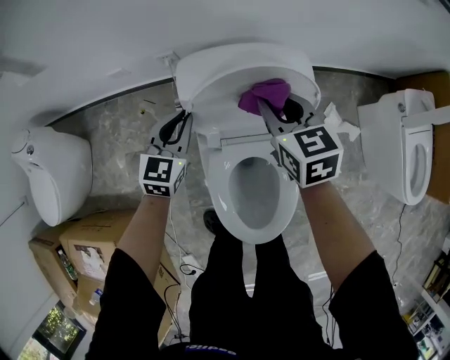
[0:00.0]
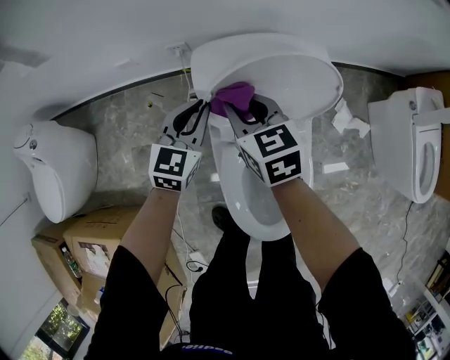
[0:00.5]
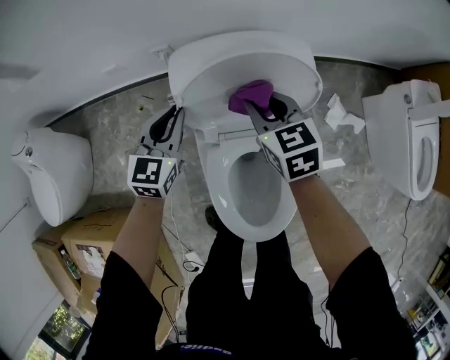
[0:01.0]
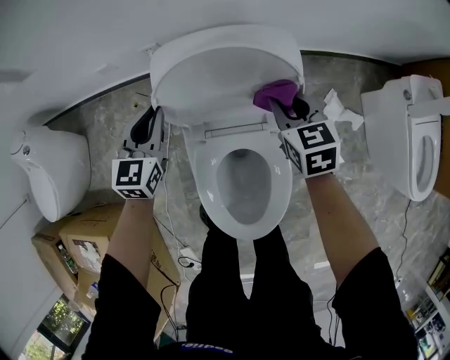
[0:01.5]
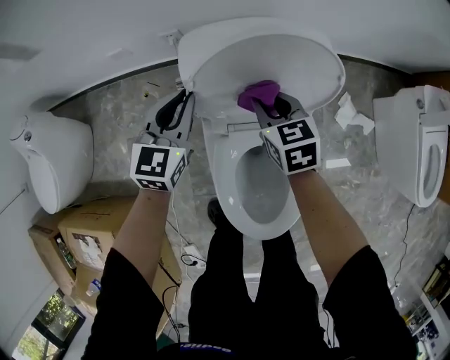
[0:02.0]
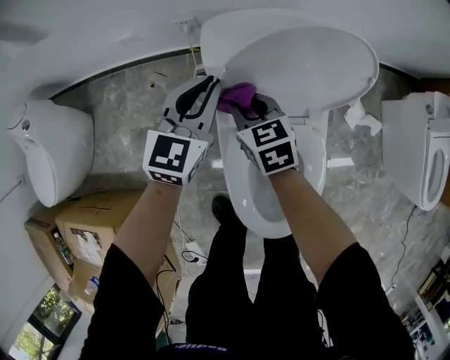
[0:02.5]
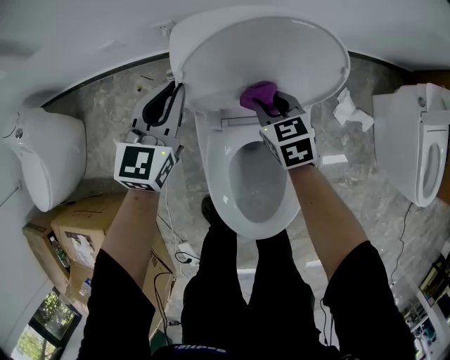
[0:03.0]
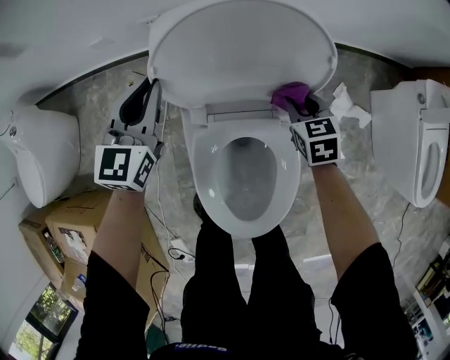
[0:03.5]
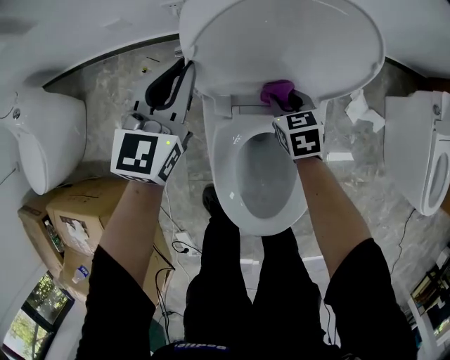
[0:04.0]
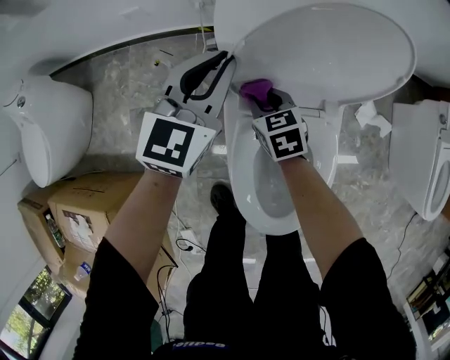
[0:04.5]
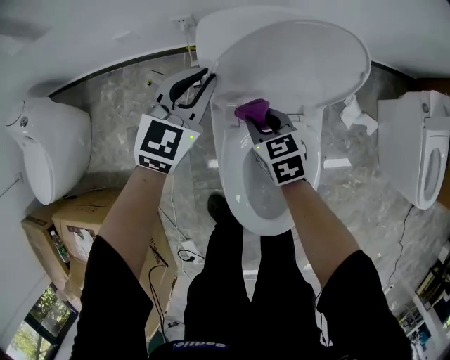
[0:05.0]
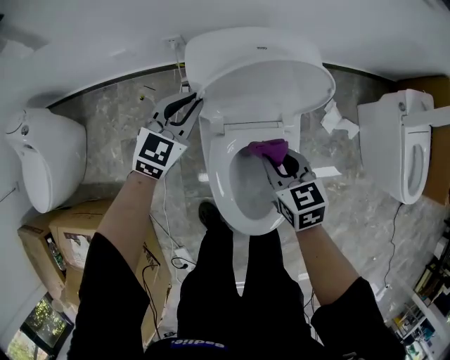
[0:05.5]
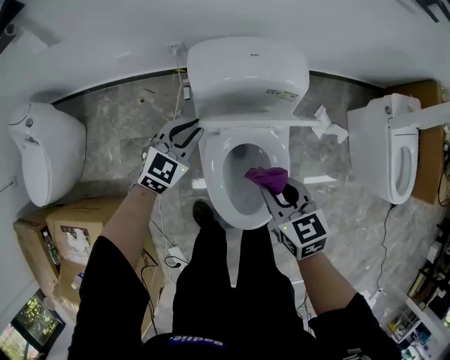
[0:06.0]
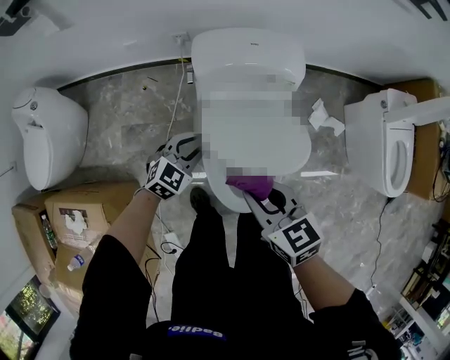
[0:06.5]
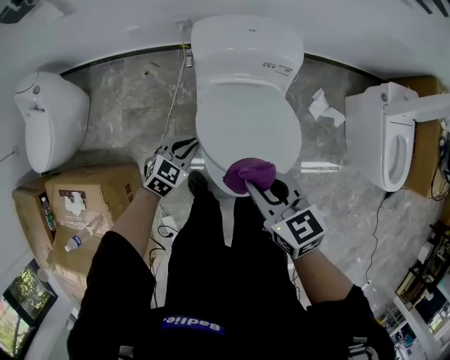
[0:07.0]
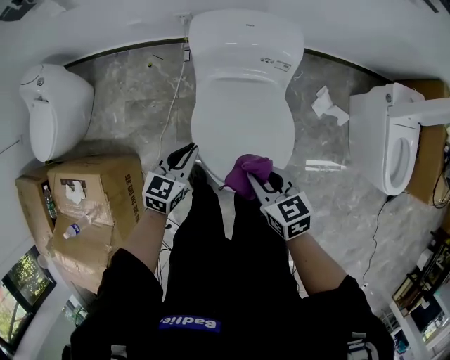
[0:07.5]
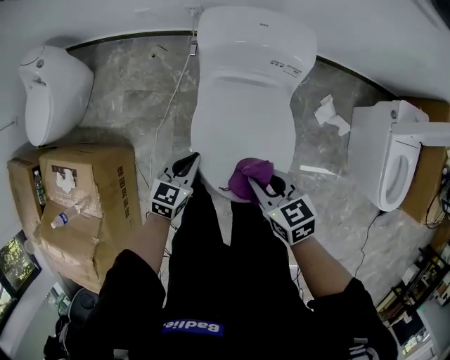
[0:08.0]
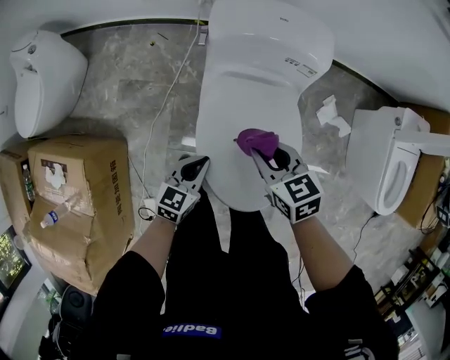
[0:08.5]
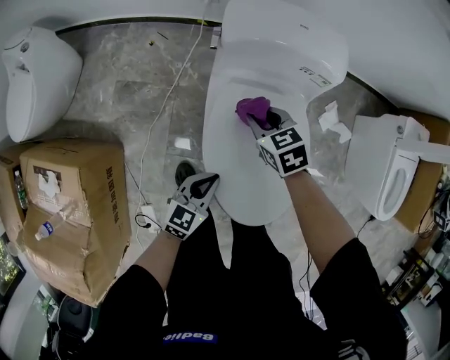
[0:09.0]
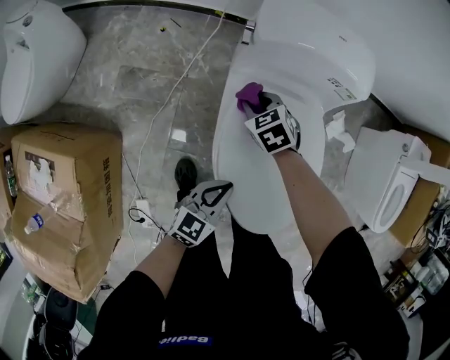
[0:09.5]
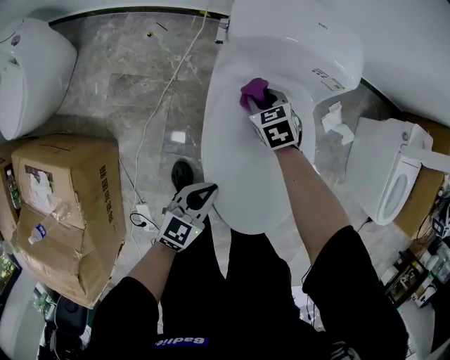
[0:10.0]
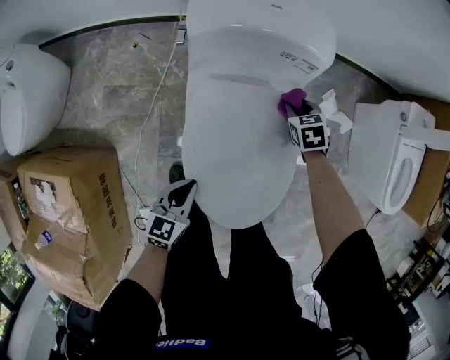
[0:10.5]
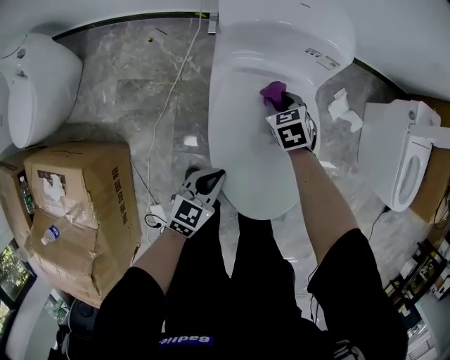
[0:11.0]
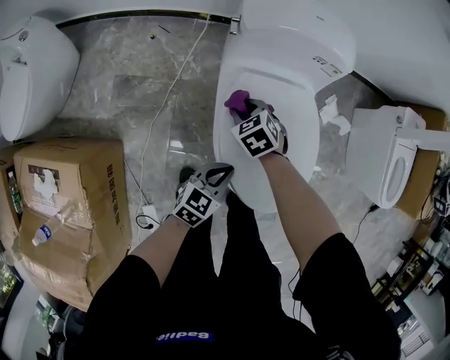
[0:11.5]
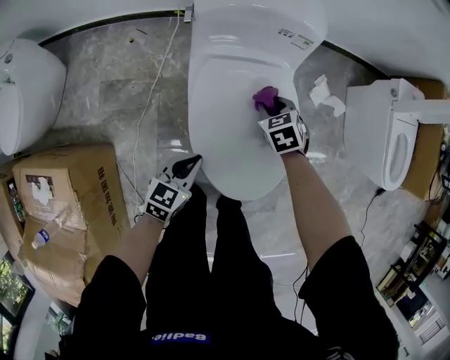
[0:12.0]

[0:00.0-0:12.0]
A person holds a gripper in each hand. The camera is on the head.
0:00.0 to 0:02.0: The right gripper goes left and right, roughly 20 cm each way, reversing 2 times.
0:02.0 to 0:04.0: The right gripper goes left and right, about 25 cm each way, reversing 2 times.
0:04.0 to 0:06.0: The right gripper shifts roughly 30 cm upward and backward. Meanwhile the left gripper moves backward, roughly 10 cm, and rotates approximately 30 degrees.
0:06.0 to 0:08.0: The right gripper shifts approximately 10 cm backward; the left gripper goes approximately 20 cm backward, and changes its angle by about 30 degrees.
0:08.0 to 0:10.0: The left gripper is displaced downward and backward by about 10 cm. Meanwhile the right gripper goes some 30 cm downward and forward, and turns by approximately 30 degrees.
0:10.0 to 0:12.0: The right gripper moves left and right over approximately 25 cm, changing direction 2 times.

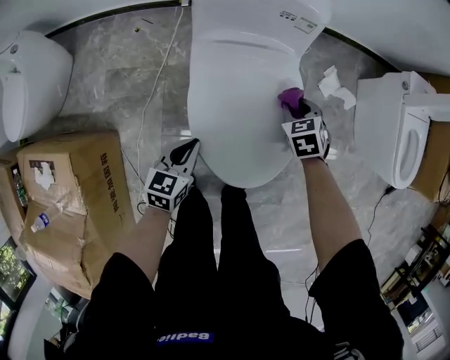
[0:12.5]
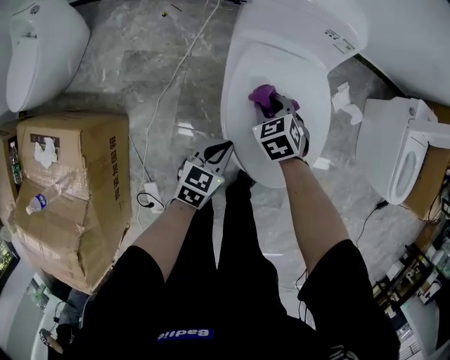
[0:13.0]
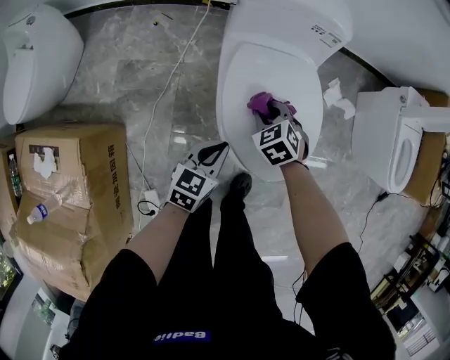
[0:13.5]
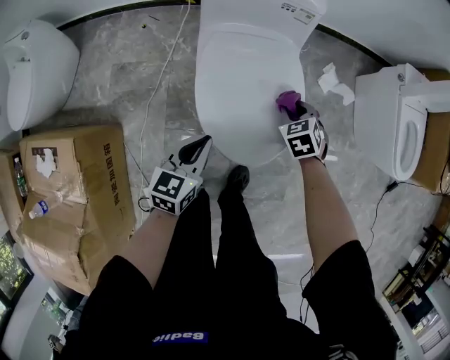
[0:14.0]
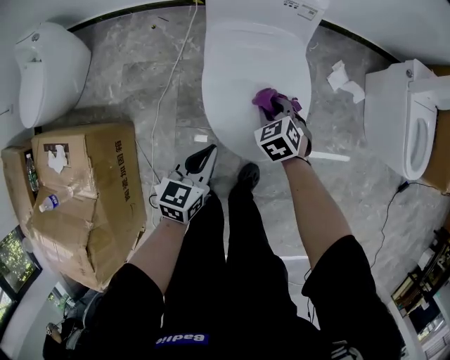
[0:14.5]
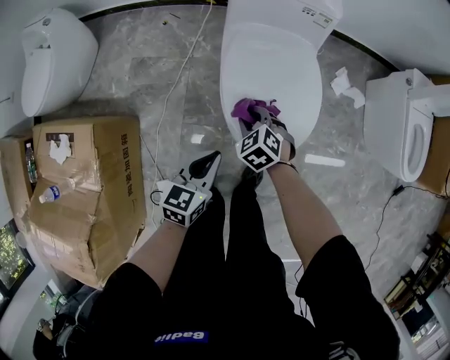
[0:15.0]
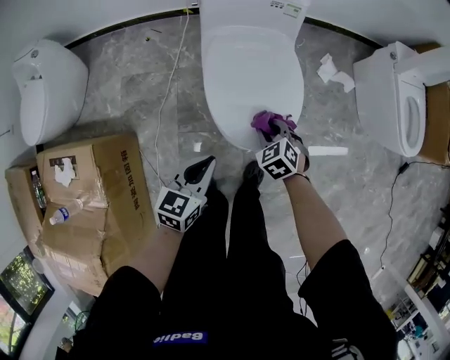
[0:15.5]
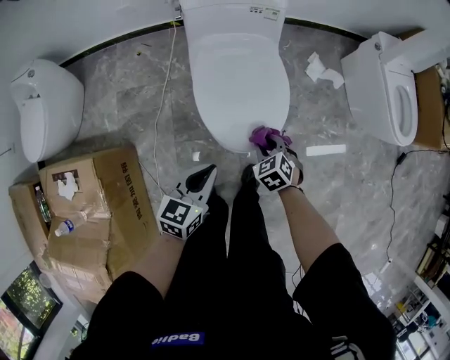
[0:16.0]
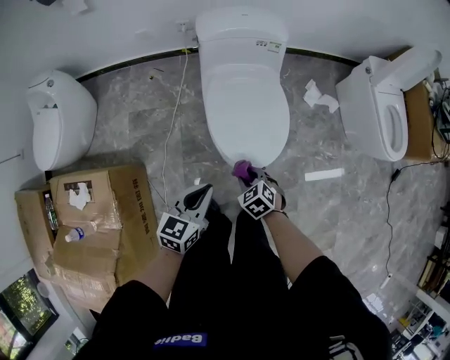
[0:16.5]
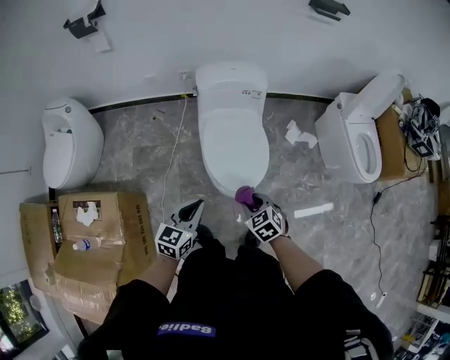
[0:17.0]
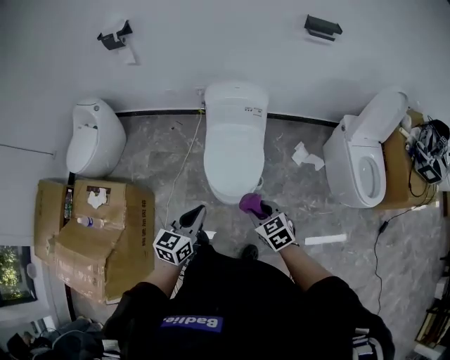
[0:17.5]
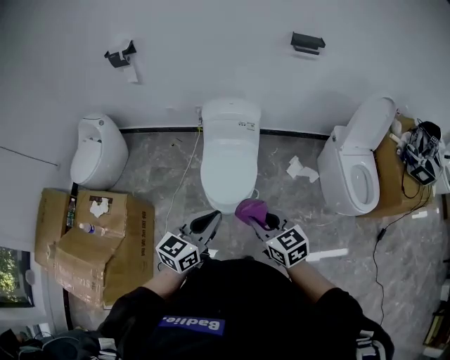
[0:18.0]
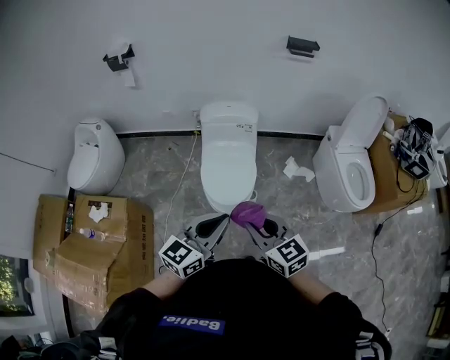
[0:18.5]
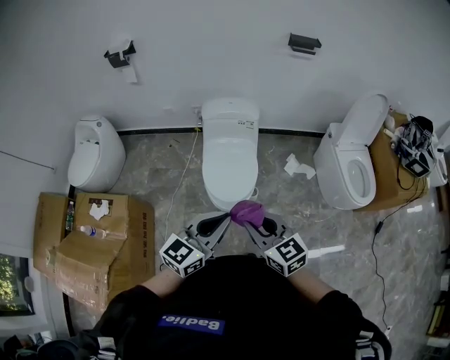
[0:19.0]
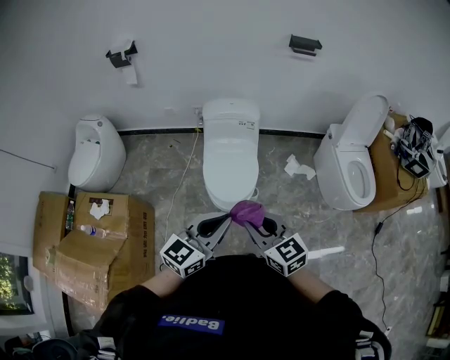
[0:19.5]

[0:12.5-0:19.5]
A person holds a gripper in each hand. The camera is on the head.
0:12.5 to 0:14.5: The left gripper moves backward and upward, roughly 10 cm. Meanwhile the right gripper goes left and right, roughly 20 cm each way, reversing 2 times.
0:14.5 to 0:16.0: The left gripper moves backward and upward, some 10 cm; the right gripper travels backward by about 15 cm, and goes to the left and returns, about 10 cm each way.
0:16.0 to 0:17.5: Both grippers move upward, roughly 25 cm. The right gripper swivels approximately 20 degrees.
0:17.5 to 0:19.5: The right gripper travels upward and backward by roughly 20 cm, and rotates about 30 degrees. Meanwhile the left gripper is displaced upward, backward and to the right by approximately 20 cm, and swivels some 20 degrees.

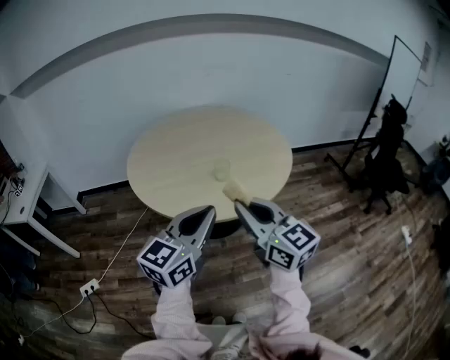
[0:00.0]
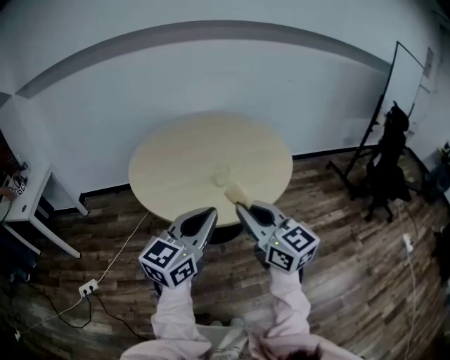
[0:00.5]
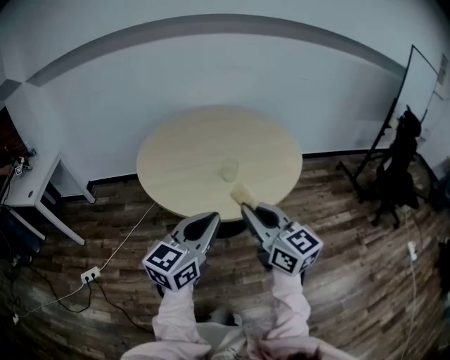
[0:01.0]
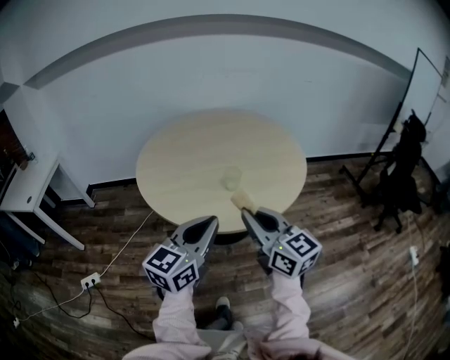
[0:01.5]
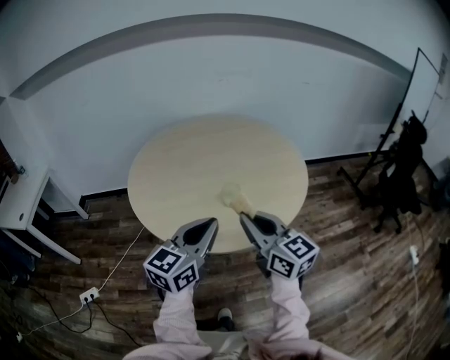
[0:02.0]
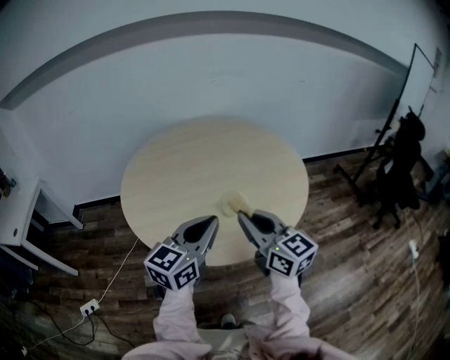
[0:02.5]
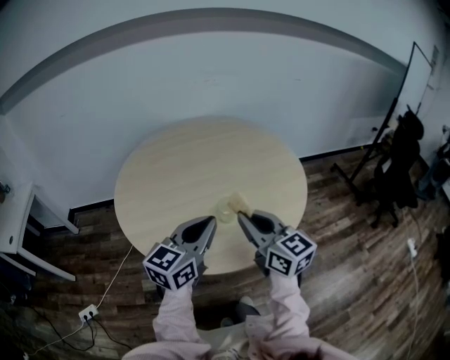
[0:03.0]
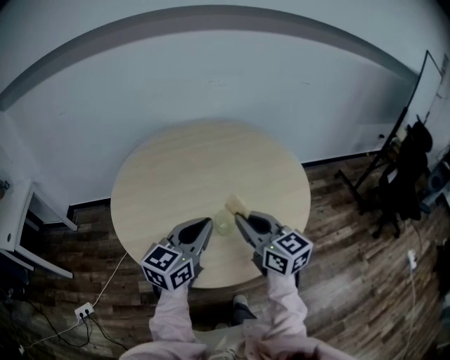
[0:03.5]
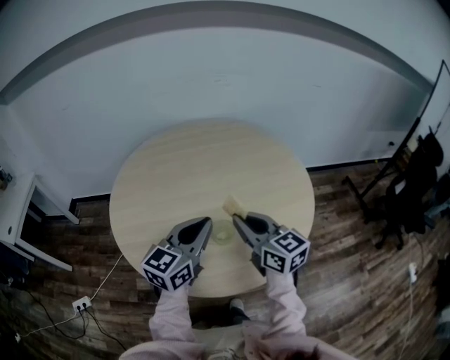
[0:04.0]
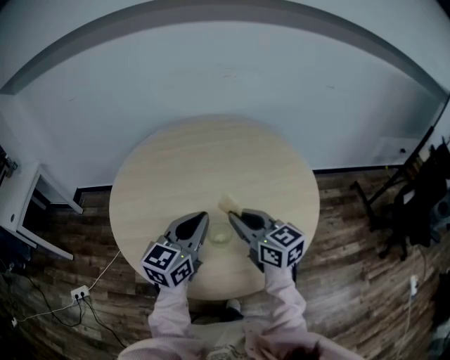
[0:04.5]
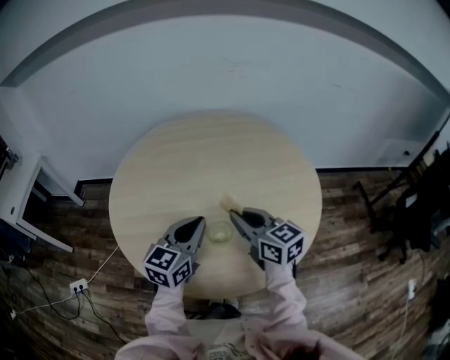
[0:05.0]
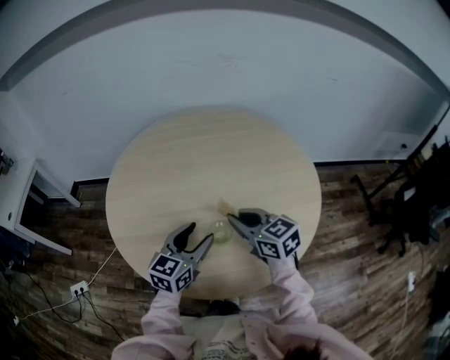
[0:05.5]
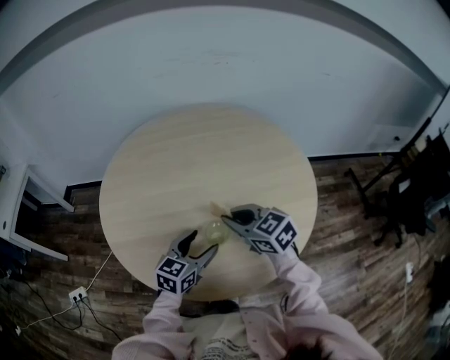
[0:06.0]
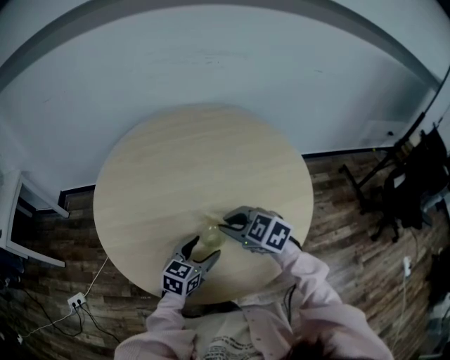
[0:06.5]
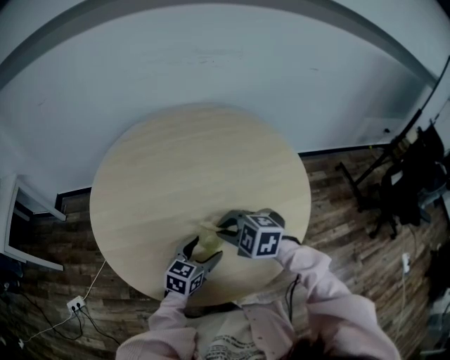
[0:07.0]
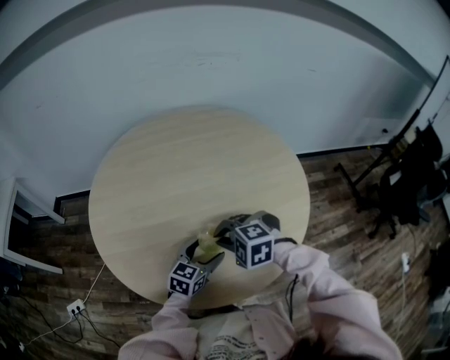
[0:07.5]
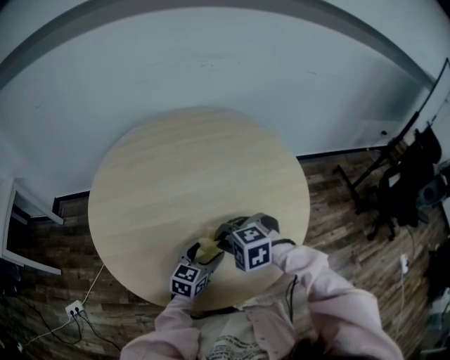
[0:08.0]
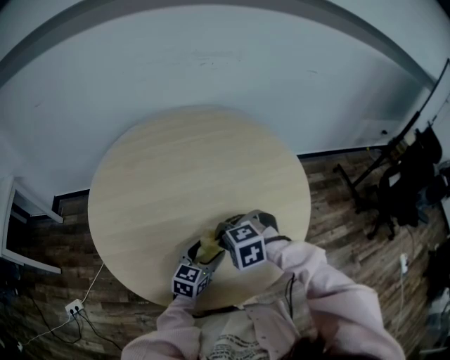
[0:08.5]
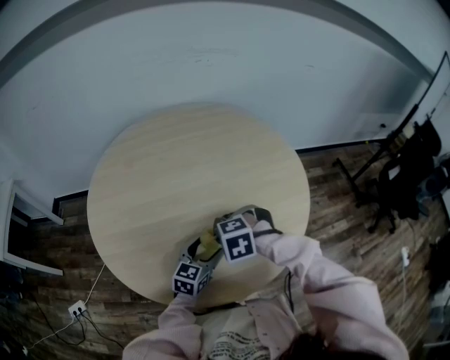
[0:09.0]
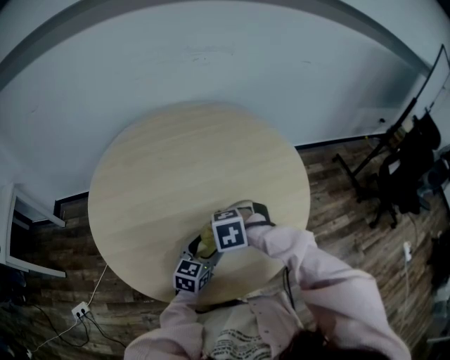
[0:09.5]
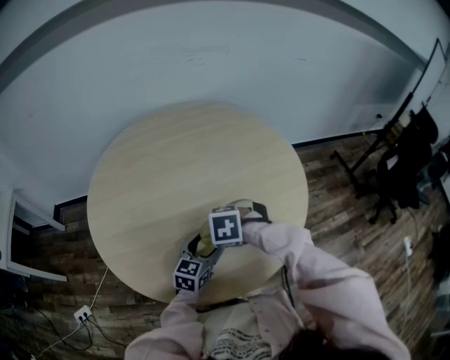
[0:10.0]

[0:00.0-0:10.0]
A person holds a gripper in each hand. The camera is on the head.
0:00.0 to 0:02.0: Both grippers move forward, some 10 cm.
0:02.0 to 0:04.0: Both grippers move forward, some 20 cm.
0:04.0 to 0:06.0: The right gripper moves downward, approximately 10 cm, and rotates roughly 30 degrees, while the left gripper travels downward by about 15 cm, and opens.
0:06.0 to 0:08.0: The grippers both shift downward by approximately 5 cm. The right gripper rolls counterclockwise, seen from behind, by about 50 degrees.
0:08.0 to 0:10.0: The right gripper swivels approximately 20 degrees.
